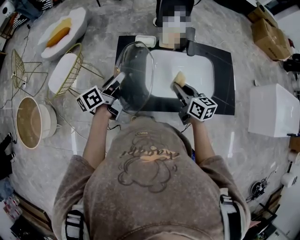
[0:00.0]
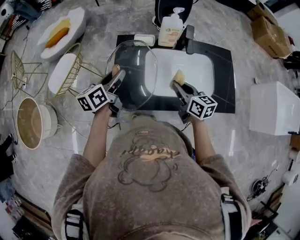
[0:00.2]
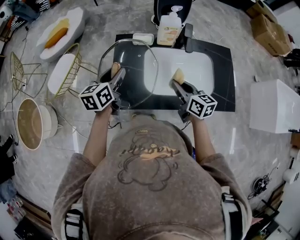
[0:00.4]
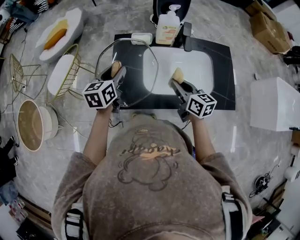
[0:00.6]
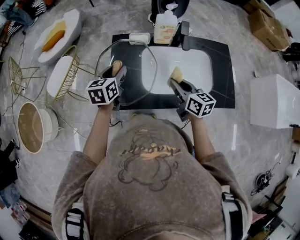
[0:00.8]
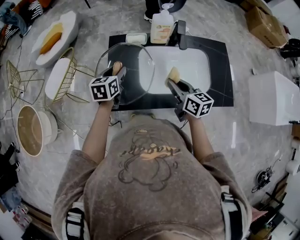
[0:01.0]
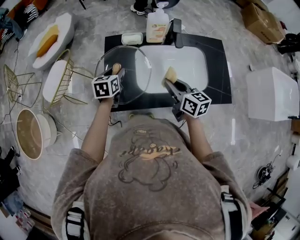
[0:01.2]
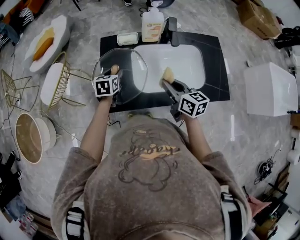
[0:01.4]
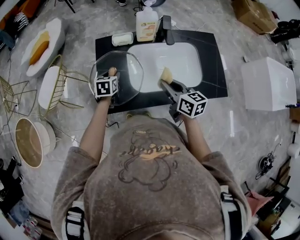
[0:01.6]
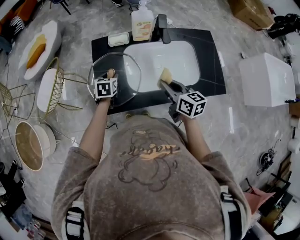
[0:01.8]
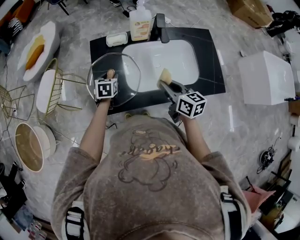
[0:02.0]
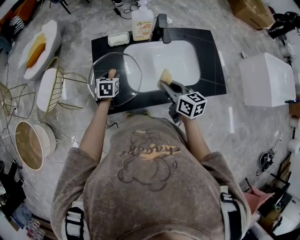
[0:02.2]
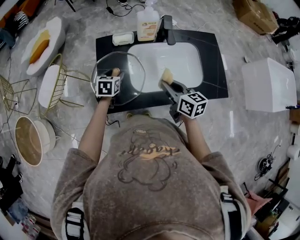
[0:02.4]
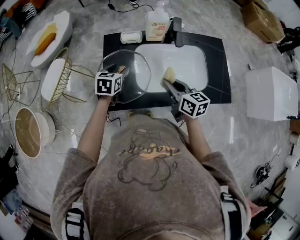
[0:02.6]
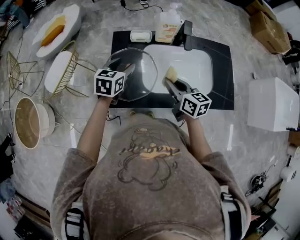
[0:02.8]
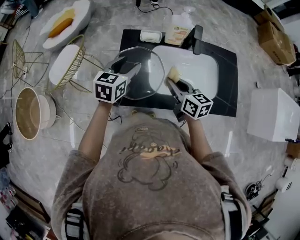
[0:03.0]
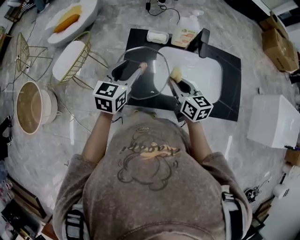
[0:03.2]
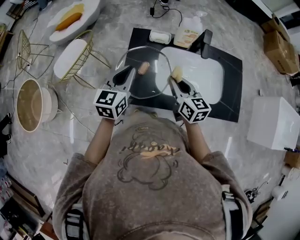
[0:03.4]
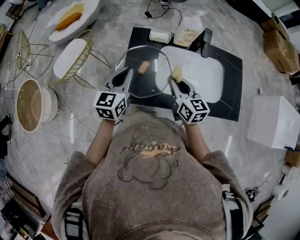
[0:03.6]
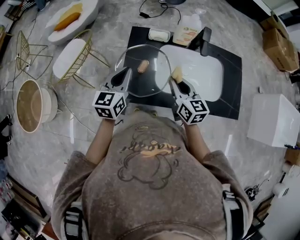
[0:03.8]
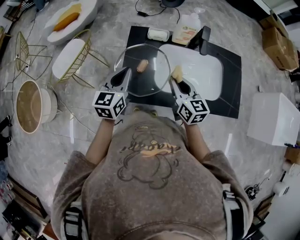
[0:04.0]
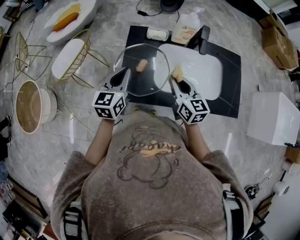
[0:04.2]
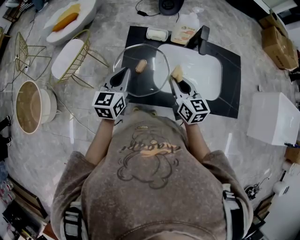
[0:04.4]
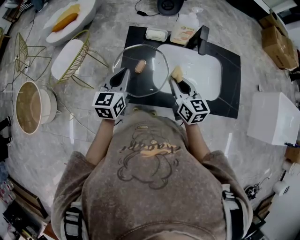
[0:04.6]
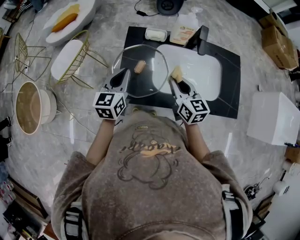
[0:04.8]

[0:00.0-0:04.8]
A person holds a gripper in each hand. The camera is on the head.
0:00.0 to 0:01.6: The left gripper goes some 15 cm downward, and angles its fingers downward, by some 40 degrees.
0:01.6 to 0:03.2: The left gripper is displaced upward by roughly 15 cm, and turns by approximately 30 degrees. Meanwhile the right gripper travels to the left by roughly 10 cm.
0:03.2 to 0:04.8: The left gripper closes its fingers.

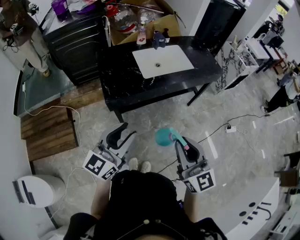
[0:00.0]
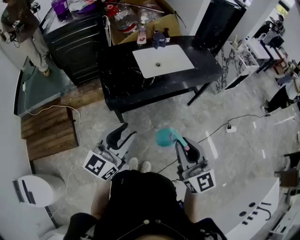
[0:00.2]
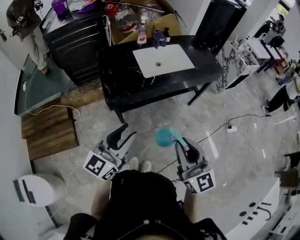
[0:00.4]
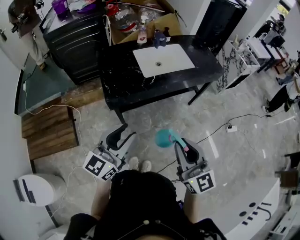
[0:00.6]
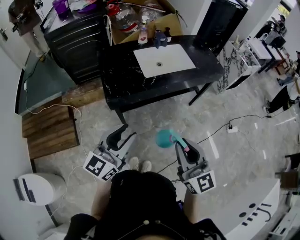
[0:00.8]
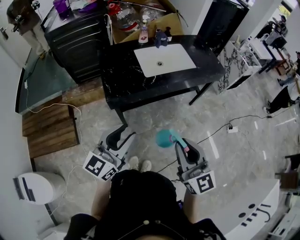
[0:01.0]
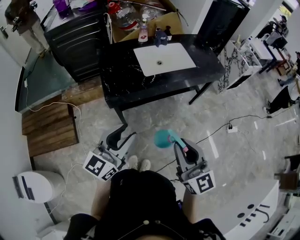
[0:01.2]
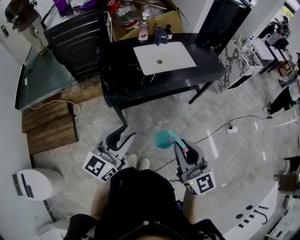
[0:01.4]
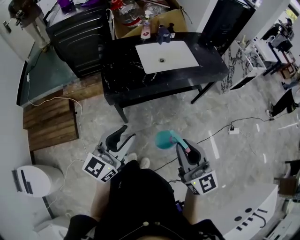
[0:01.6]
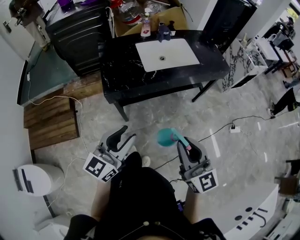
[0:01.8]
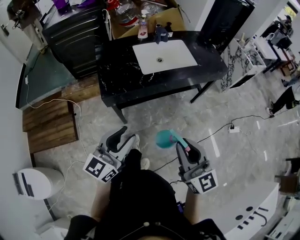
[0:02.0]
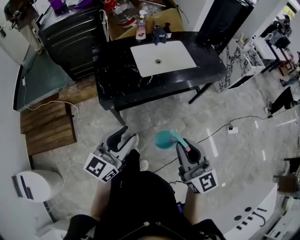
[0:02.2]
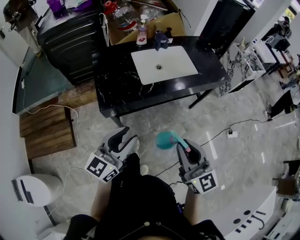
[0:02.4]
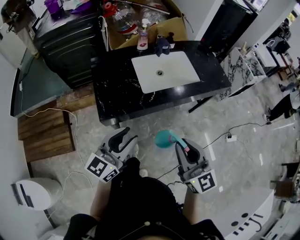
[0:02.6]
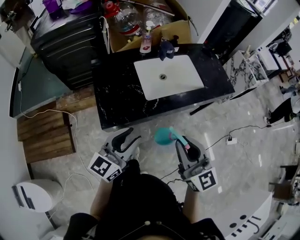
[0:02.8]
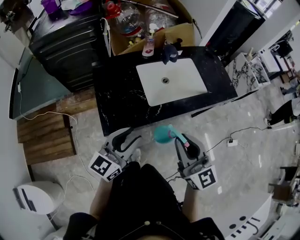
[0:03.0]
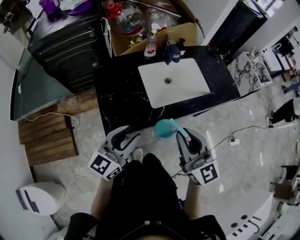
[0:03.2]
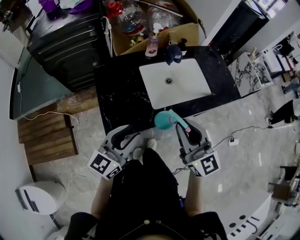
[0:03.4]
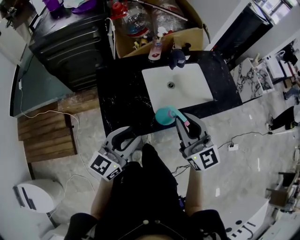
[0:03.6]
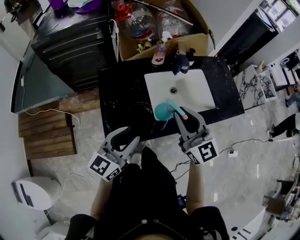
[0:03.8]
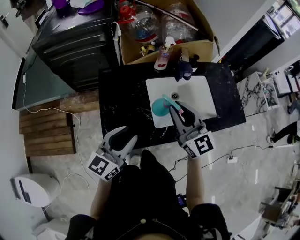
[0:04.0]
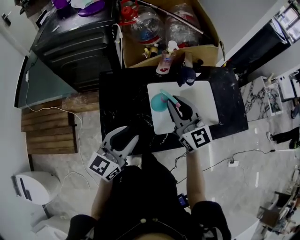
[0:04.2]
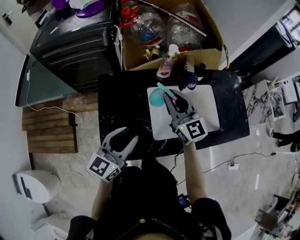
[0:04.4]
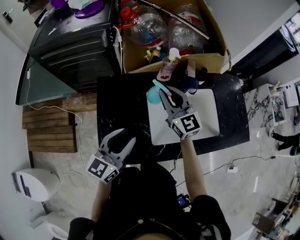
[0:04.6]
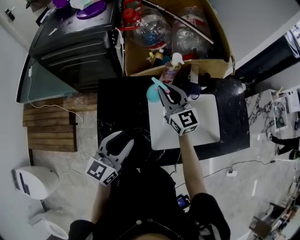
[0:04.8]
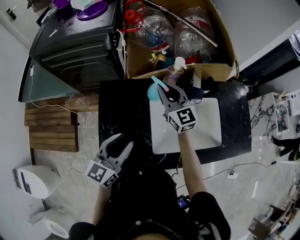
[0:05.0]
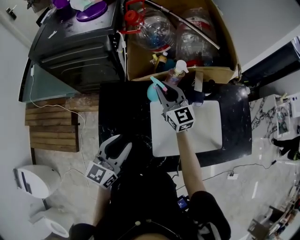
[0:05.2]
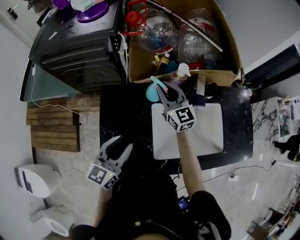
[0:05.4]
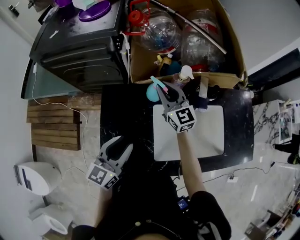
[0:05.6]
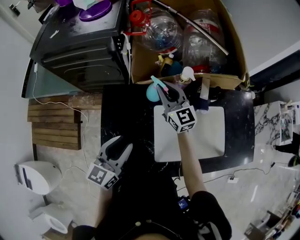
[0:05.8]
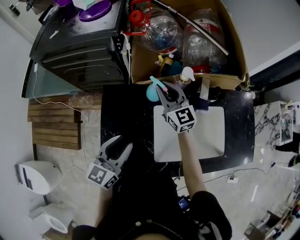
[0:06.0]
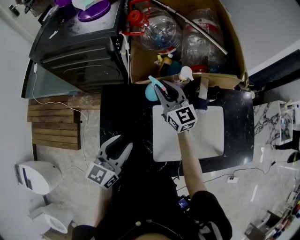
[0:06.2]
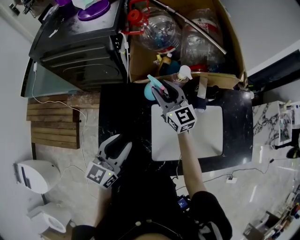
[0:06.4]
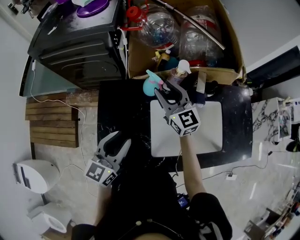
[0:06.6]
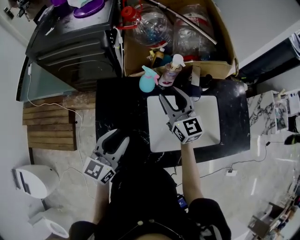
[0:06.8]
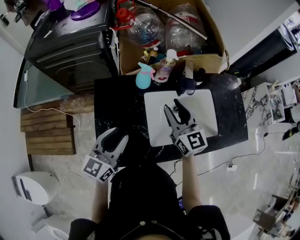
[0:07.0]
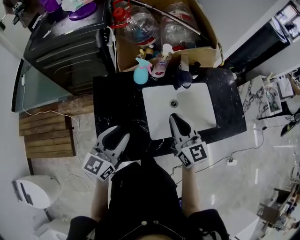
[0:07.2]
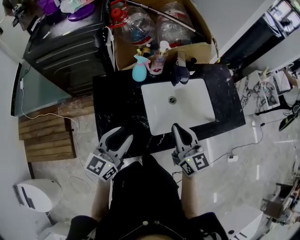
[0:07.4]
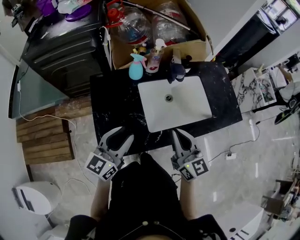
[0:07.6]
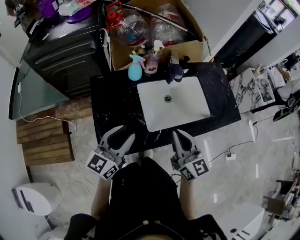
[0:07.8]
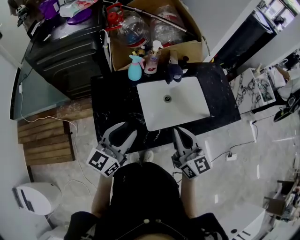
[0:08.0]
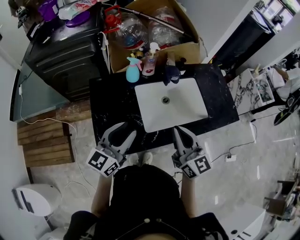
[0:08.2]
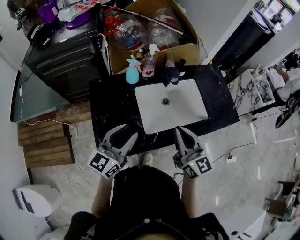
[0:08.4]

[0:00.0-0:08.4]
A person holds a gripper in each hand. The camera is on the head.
0:00.0 to 0:01.4: The grippers make only small movements.
0:01.4 to 0:02.8: Both grippers travel together forward, roughly 20 cm.
0:02.8 to 0:04.2: The left gripper travels forward by approximately 20 cm; the right gripper is displaced forward by approximately 35 cm.
0:04.2 to 0:05.6: The right gripper heads forward and downward, covering some 25 cm. The left gripper goes approximately 10 cm forward.
0:05.6 to 0:07.0: The right gripper shifts roughly 20 cm backward and to the right, and opens up.
0:07.0 to 0:08.4: The left gripper goes some 10 cm to the right and backward. Meanwhile the right gripper shifts about 20 cm backward and to the right, and closes its fingers.

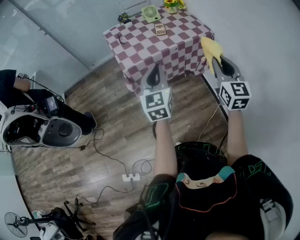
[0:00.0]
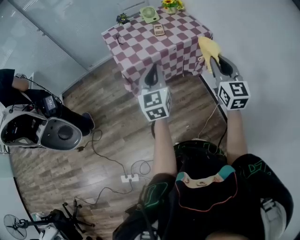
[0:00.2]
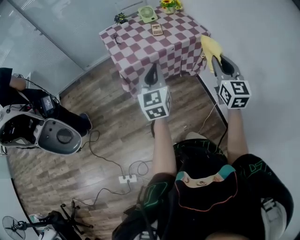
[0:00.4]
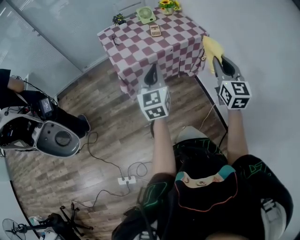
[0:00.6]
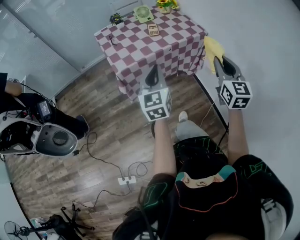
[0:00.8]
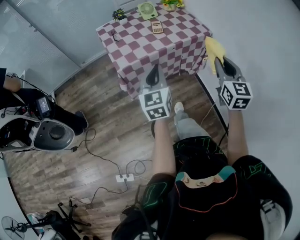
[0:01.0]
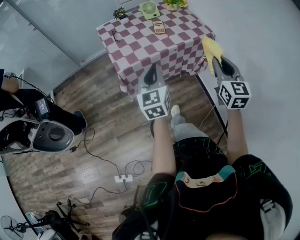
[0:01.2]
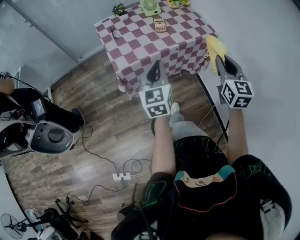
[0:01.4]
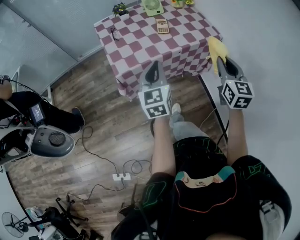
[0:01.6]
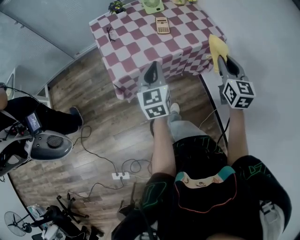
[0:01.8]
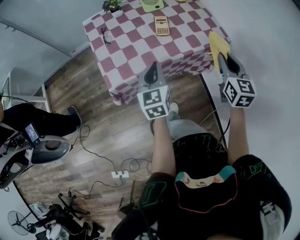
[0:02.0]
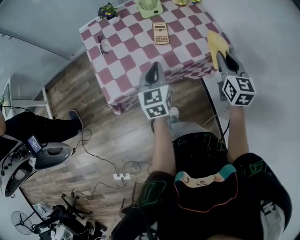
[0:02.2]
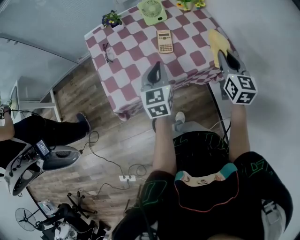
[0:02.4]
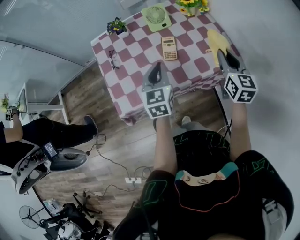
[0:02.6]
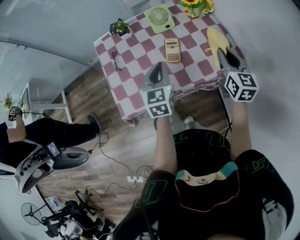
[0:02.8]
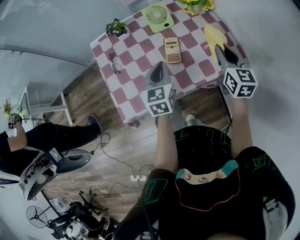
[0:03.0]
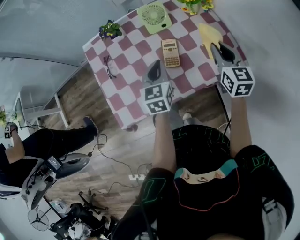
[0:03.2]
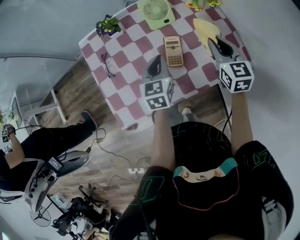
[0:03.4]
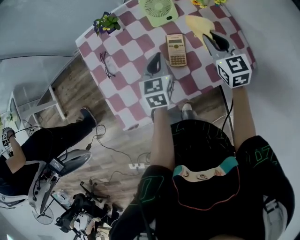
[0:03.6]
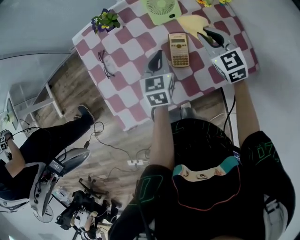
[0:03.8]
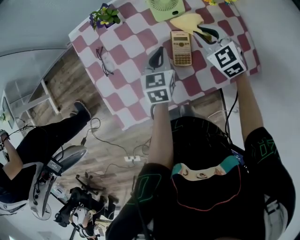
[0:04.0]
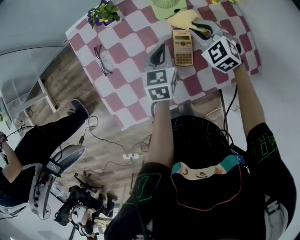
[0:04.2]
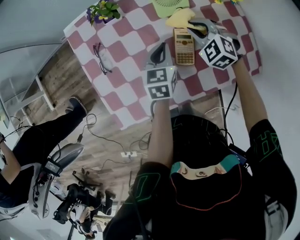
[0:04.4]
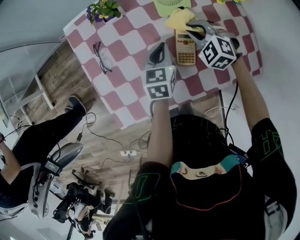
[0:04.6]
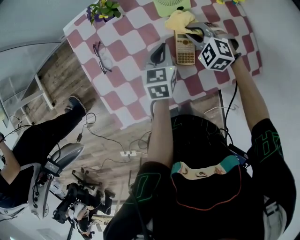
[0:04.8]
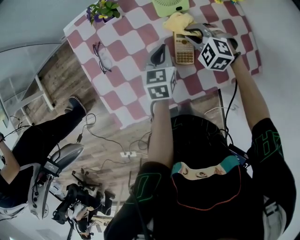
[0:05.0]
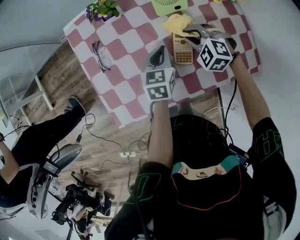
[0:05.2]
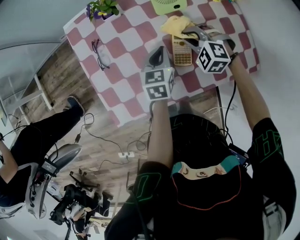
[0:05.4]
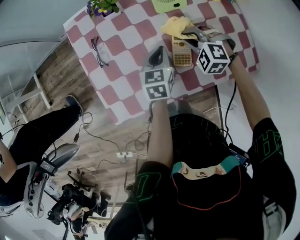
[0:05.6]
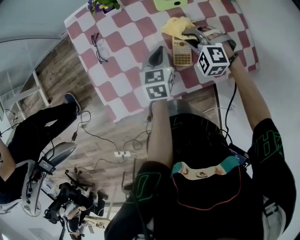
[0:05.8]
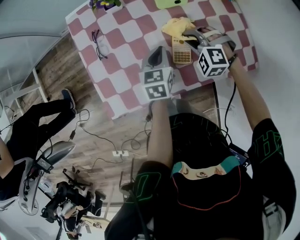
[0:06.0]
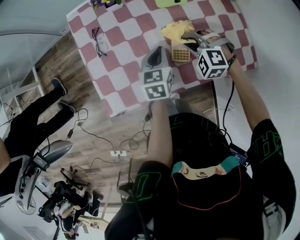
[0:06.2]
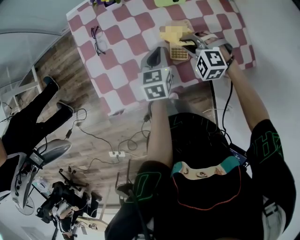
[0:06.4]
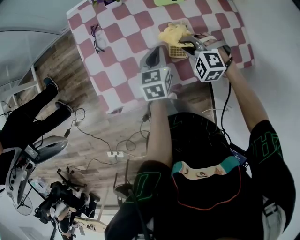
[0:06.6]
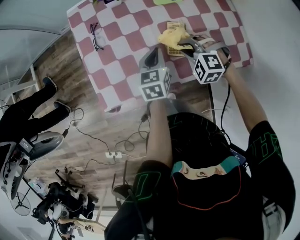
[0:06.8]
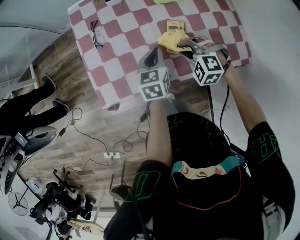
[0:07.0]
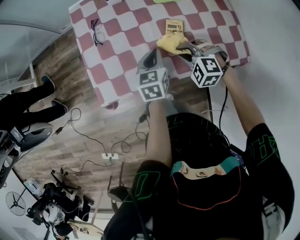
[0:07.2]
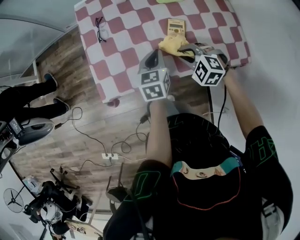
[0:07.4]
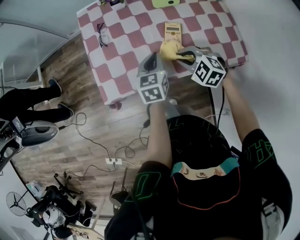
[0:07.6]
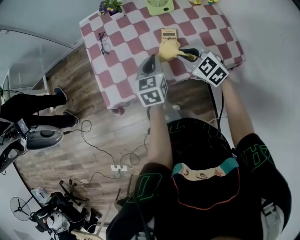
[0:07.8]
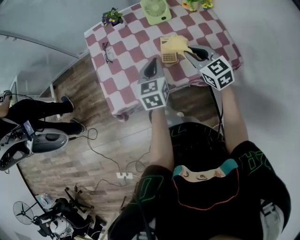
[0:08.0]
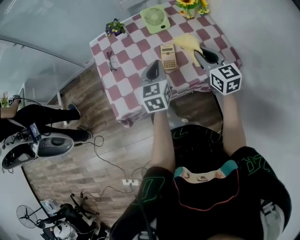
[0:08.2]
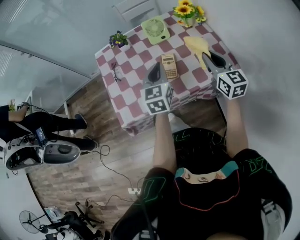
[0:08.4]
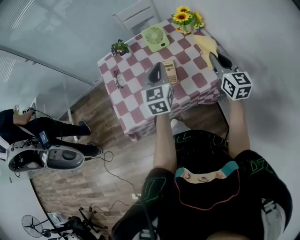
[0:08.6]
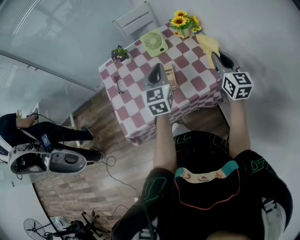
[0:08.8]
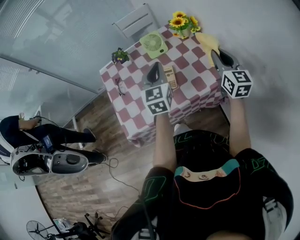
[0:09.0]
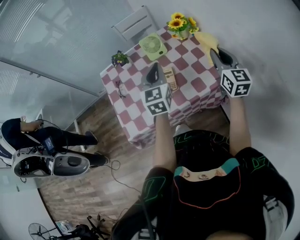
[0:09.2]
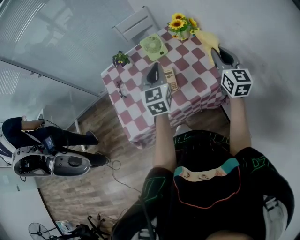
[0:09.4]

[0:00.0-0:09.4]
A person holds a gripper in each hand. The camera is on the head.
0:00.0 to 0:01.6: The left gripper moves forward and downward, roughly 15 cm. The right gripper heads forward, covering about 15 cm.
0:01.6 to 0:03.2: Both grippers move forward, some 35 cm.
0:03.2 to 0:04.8: The left gripper goes approximately 15 cm downward and forward, while the right gripper moves downward, to the left and forward, some 25 cm, and rolls counterclockwise, seen from behind, by about 60 degrees.
0:04.8 to 0:06.2: Both grippers move backward, about 5 cm.
0:06.2 to 0:07.8: Both grippers travel together backward and upward, some 10 cm. The right gripper swivels approximately 40 degrees.
0:07.8 to 0:09.4: The left gripper heads upward and to the right, covering about 20 cm, and rotates approximately 30 degrees. Meanwhile the right gripper shifts approximately 30 cm to the right and upward, and angles its fingers upward, by some 40 degrees.

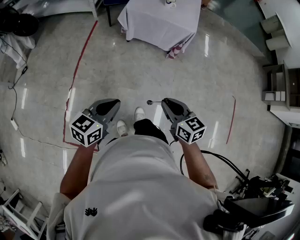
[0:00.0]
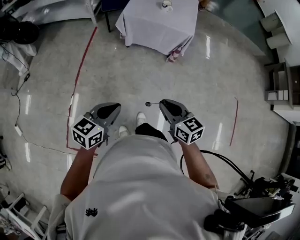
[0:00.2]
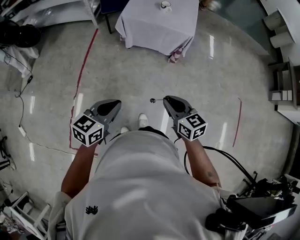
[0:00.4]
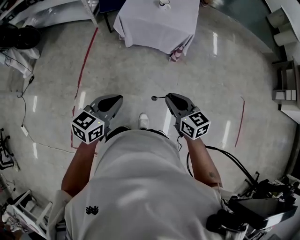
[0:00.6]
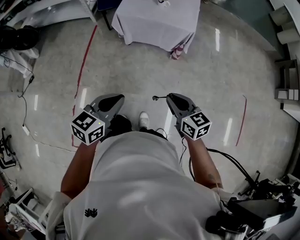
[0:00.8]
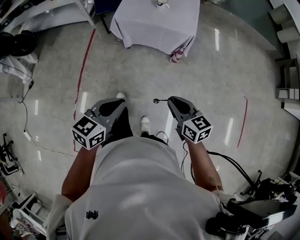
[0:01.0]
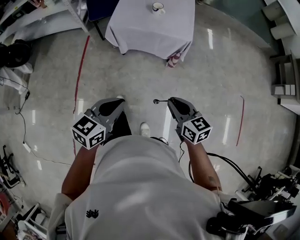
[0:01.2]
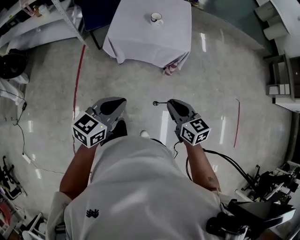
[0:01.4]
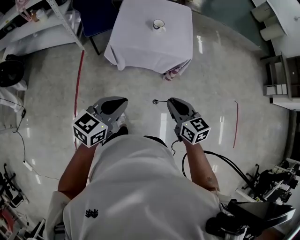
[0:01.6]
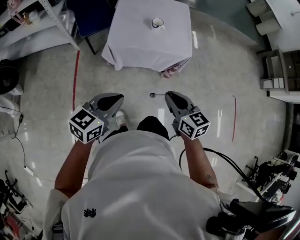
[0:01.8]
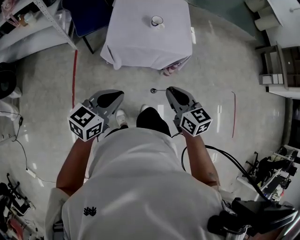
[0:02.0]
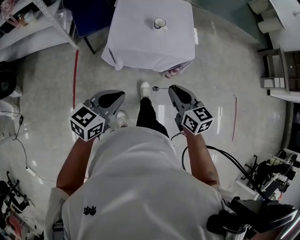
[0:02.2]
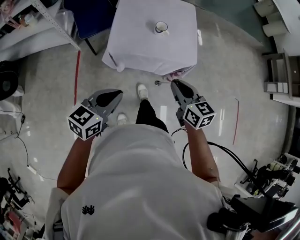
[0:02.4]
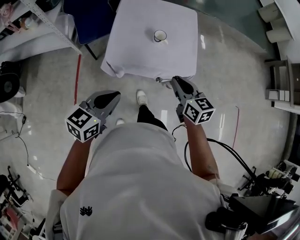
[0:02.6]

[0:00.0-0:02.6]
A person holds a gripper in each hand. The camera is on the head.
0:00.0 to 0:01.2: Both grippers travel together forward, some 20 cm.
0:01.2 to 0:02.6: The right gripper heads forward, covering some 35 cm, while the left gripper heads forward and to the left, covering approximately 35 cm.
